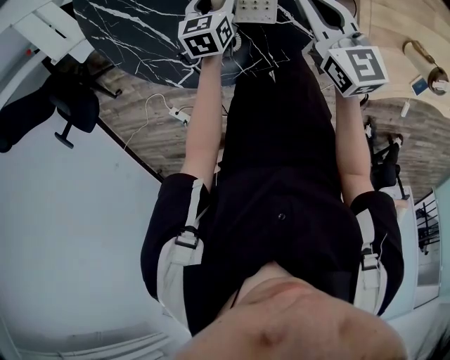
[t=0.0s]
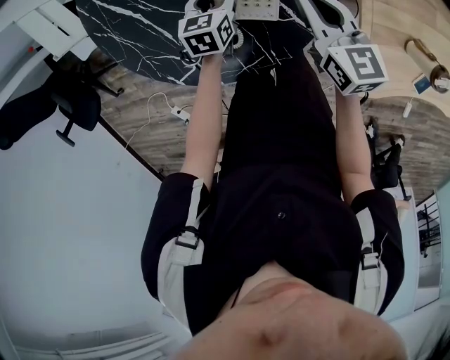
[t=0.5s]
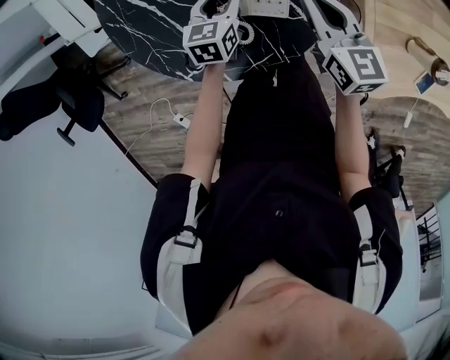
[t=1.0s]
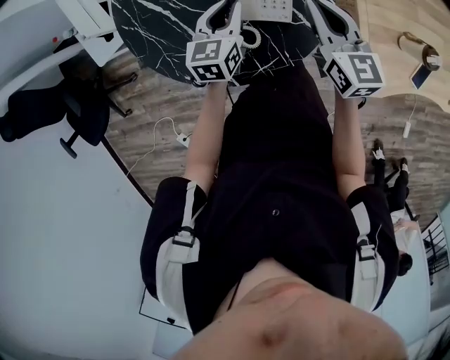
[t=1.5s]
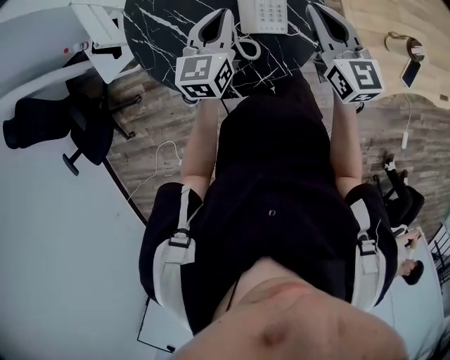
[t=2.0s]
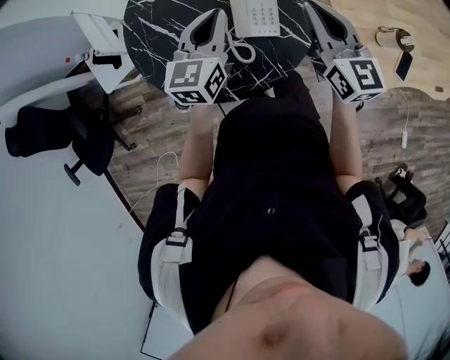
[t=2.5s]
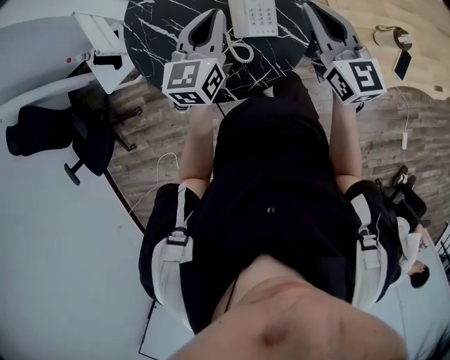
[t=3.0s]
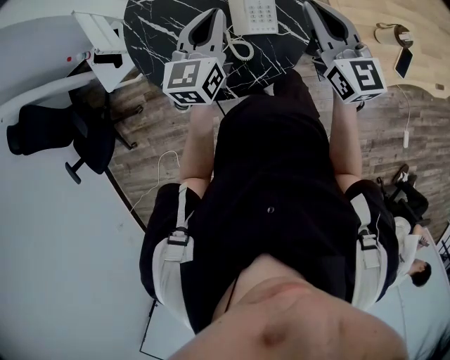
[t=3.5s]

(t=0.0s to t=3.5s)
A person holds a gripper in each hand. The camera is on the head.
t=0.0s - t=2.0s: The right gripper is displaced upward and backward by roughly 20 cm, and rotates roughly 20 degrees, while the left gripper shifts some 25 cm upward, tilts its fingers about 30 degrees upward, and closes up.
t=2.0s - t=3.5s: The left gripper moves upward, approximately 5 cm, while the right gripper ends up some 5 cm from where it was.

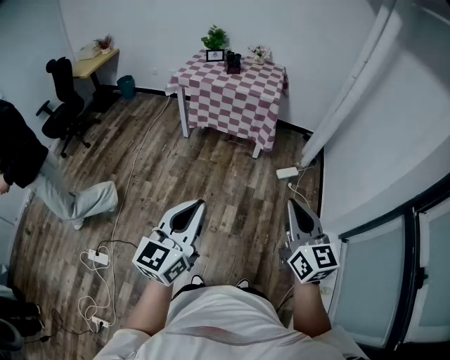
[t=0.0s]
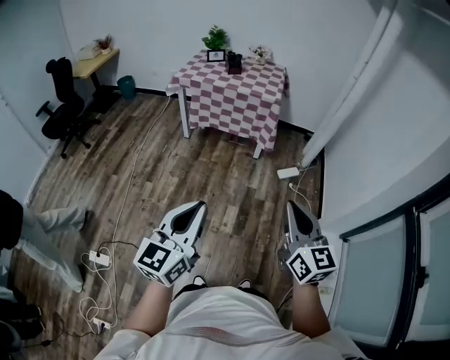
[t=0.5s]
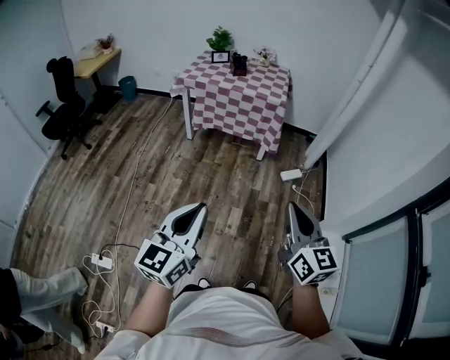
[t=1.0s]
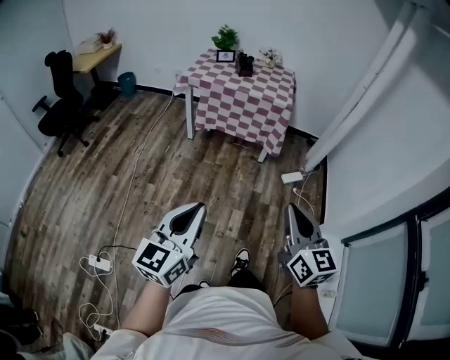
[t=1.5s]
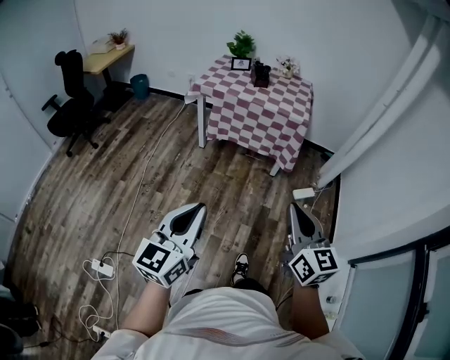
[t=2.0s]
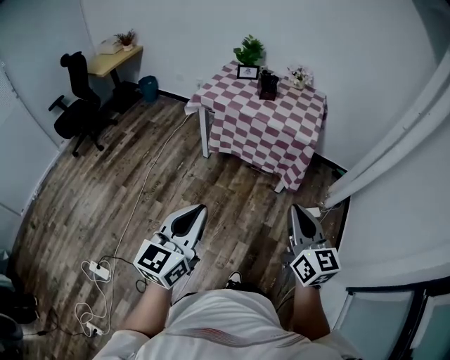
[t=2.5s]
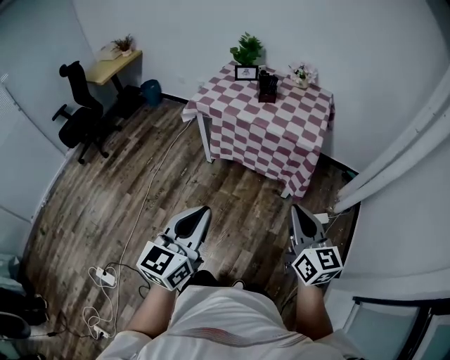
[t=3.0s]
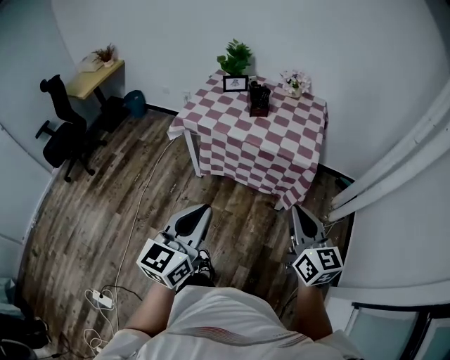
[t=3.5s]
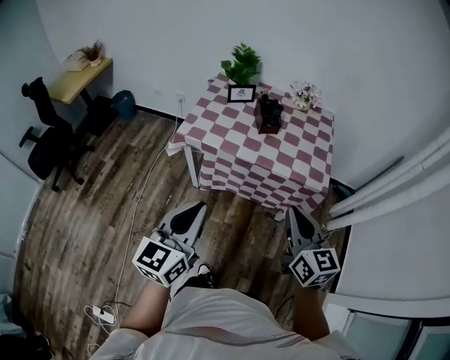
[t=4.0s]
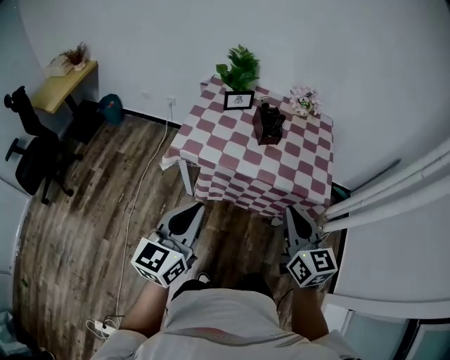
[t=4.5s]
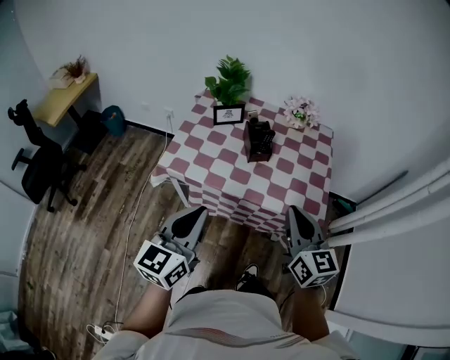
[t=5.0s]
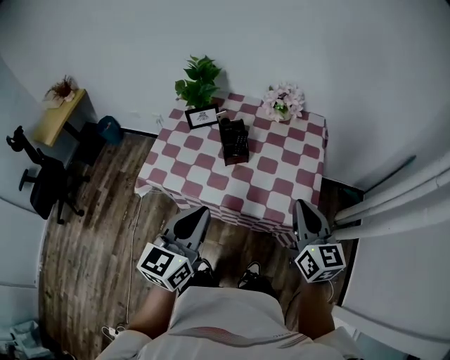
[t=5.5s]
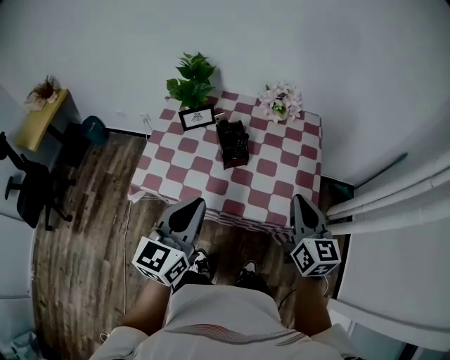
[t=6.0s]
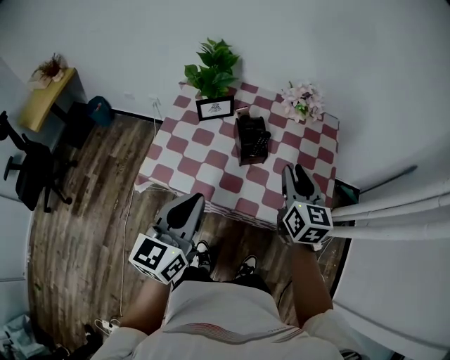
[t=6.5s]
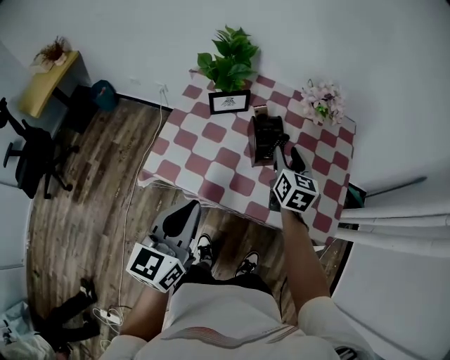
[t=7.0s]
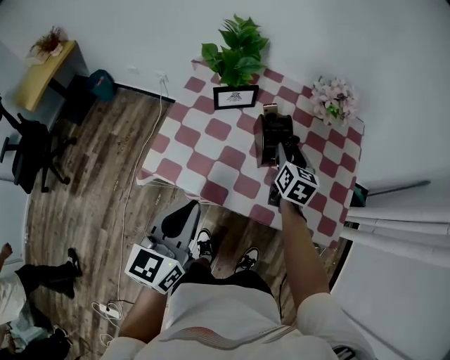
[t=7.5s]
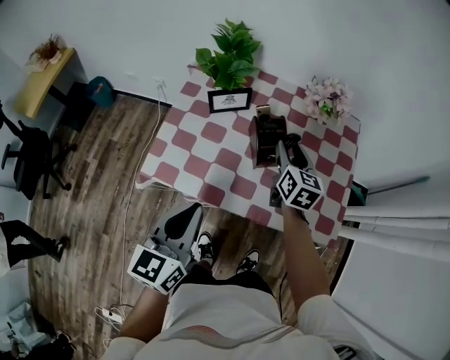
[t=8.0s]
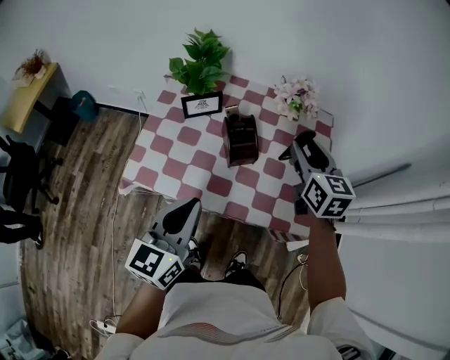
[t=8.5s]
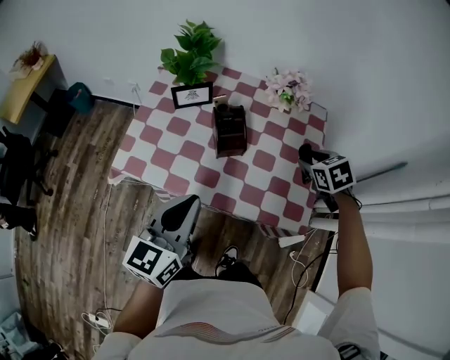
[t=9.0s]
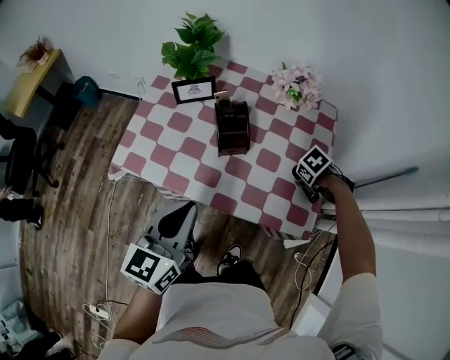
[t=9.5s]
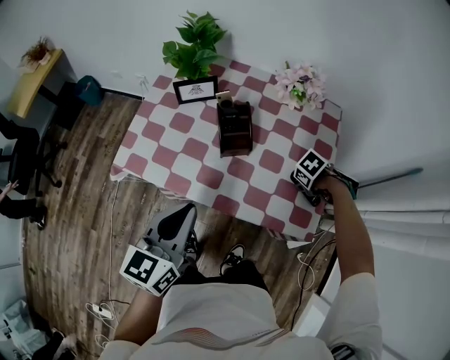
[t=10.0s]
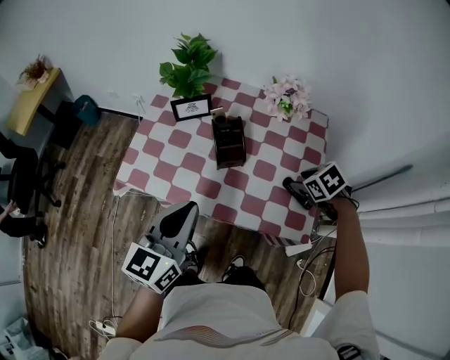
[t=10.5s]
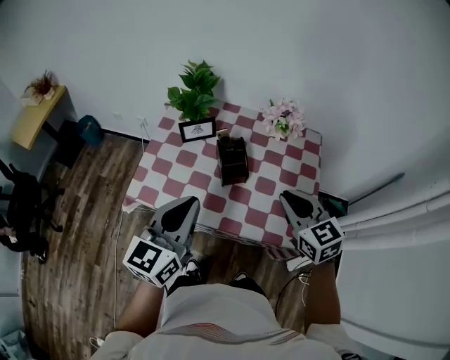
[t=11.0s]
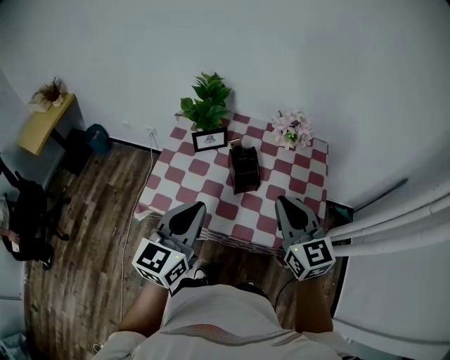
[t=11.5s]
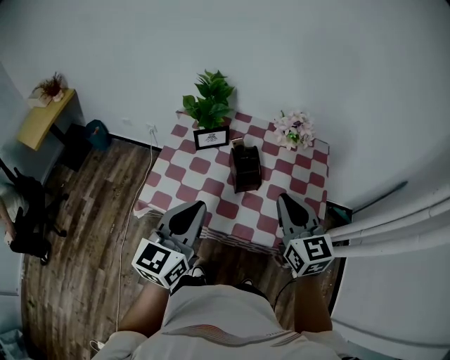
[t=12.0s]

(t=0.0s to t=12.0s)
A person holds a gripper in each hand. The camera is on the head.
t=0.0s - t=2.0s: The right gripper travels forward and to the left by some 20 cm. Meanwhile the left gripper is displaced to the left and forward by roughly 20 cm.
t=2.0s - t=4.0s: The two grippers travel together, forward, approximately 50 cm.
t=4.0s - t=6.0s: The left gripper travels forward by approximately 30 cm. The right gripper goes approximately 30 cm forward and to the right.
t=6.0s - t=8.0s: The right gripper moves forward, to the left and downward, approximately 30 cm, and opens up. Meanwhile the left gripper shifts some 10 cm to the left and downward.
t=8.0s - t=10.0s: The left gripper moves about 10 cm. Meanwhile the right gripper ends up roughly 30 cm from where it was, and tilts its fingers some 60 degrees downward.
t=10.0s - t=12.0s: The right gripper travels upward by some 30 cm, tips its fingers upward by some 70 degrees, and closes its fingers. Meanwhile the left gripper heads upward, covering about 10 cm.

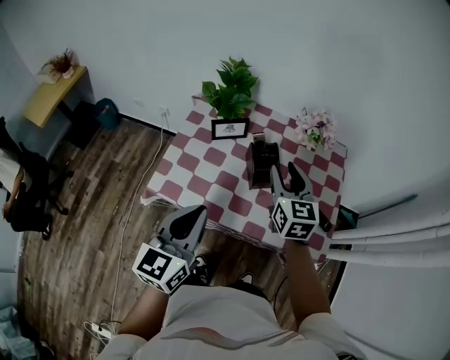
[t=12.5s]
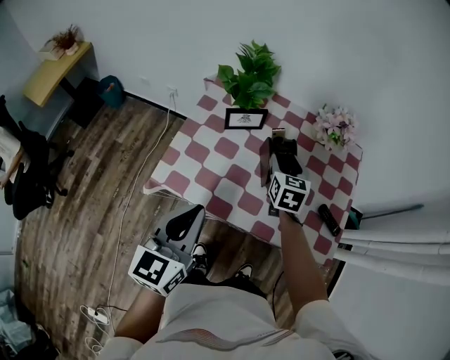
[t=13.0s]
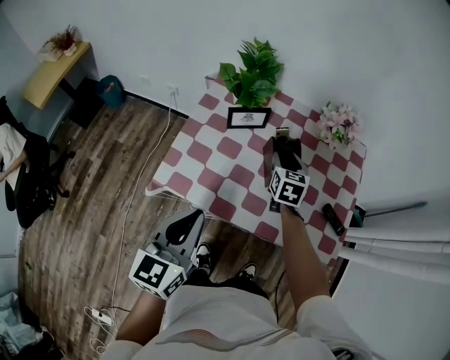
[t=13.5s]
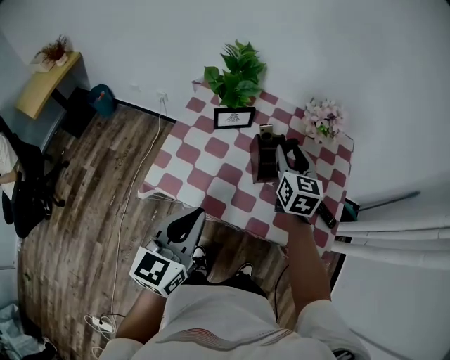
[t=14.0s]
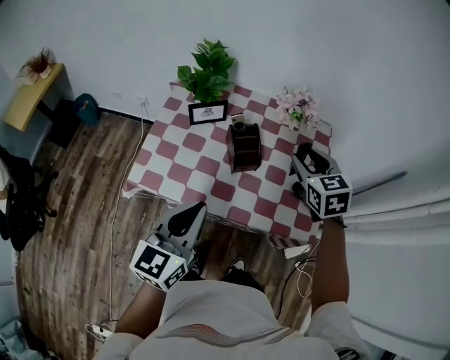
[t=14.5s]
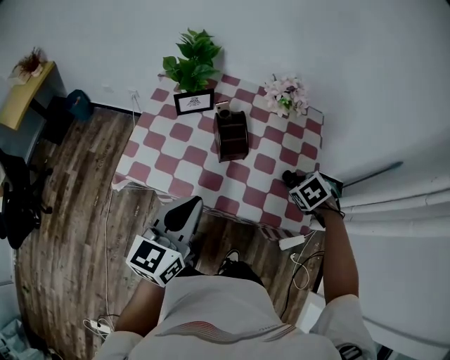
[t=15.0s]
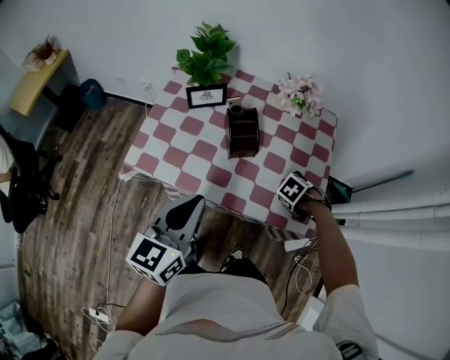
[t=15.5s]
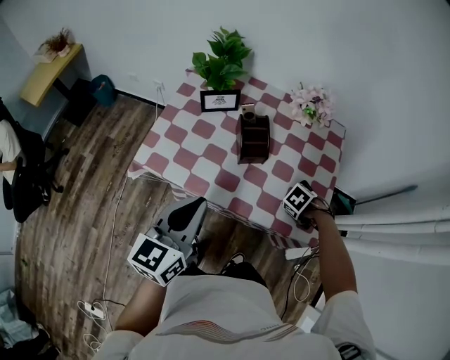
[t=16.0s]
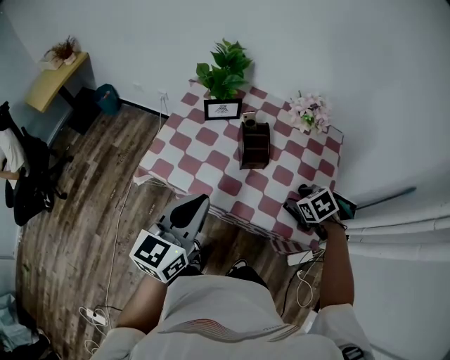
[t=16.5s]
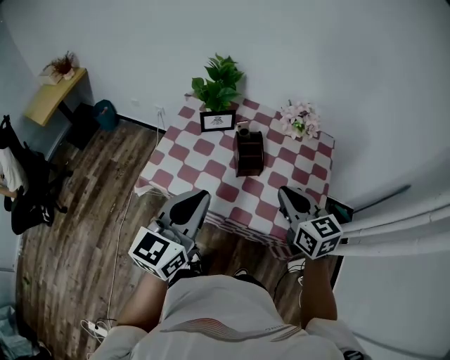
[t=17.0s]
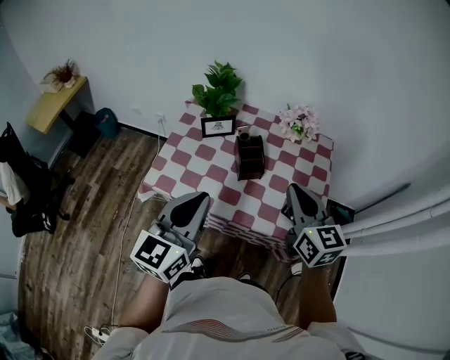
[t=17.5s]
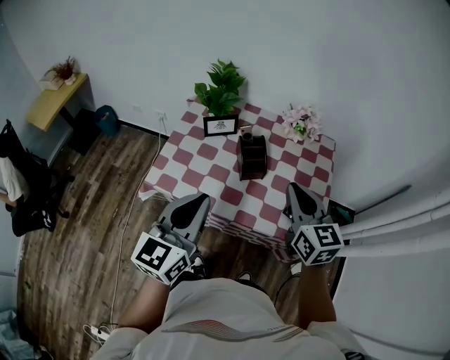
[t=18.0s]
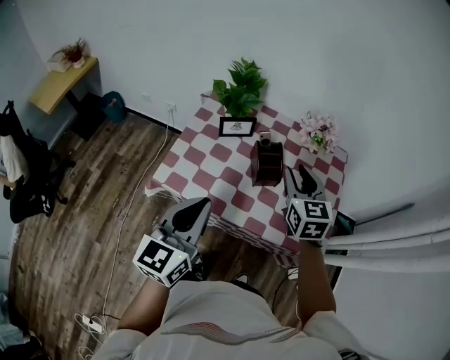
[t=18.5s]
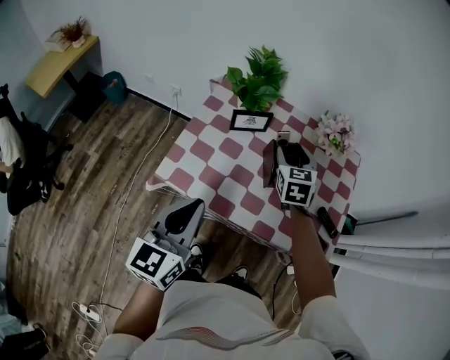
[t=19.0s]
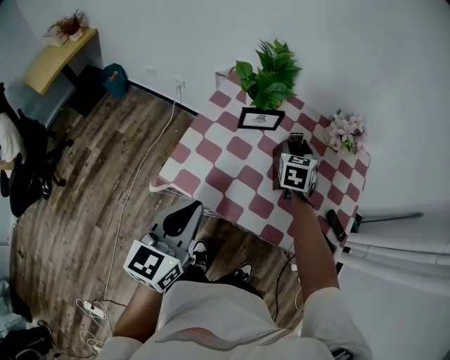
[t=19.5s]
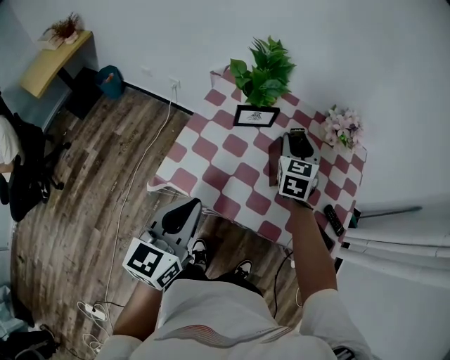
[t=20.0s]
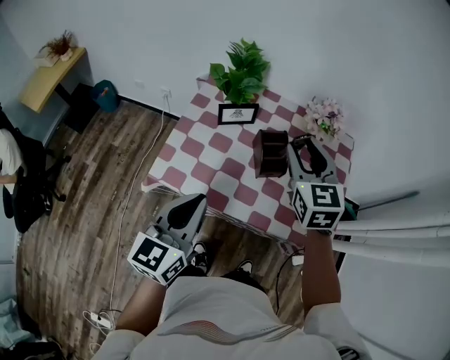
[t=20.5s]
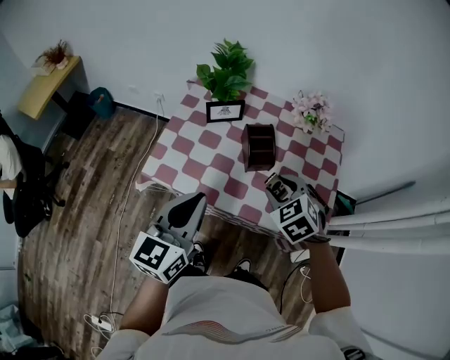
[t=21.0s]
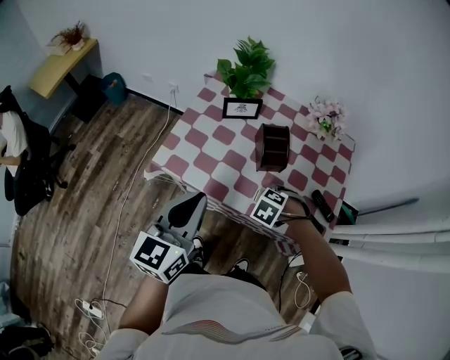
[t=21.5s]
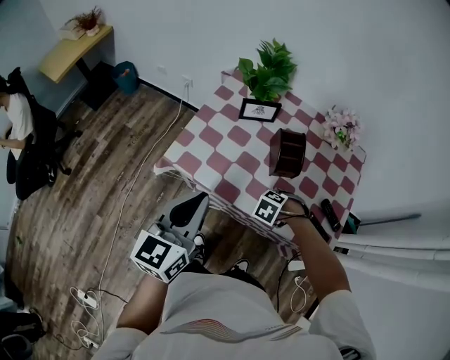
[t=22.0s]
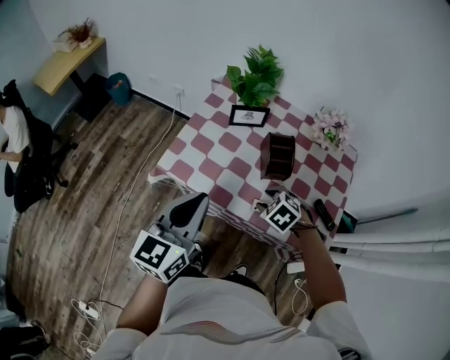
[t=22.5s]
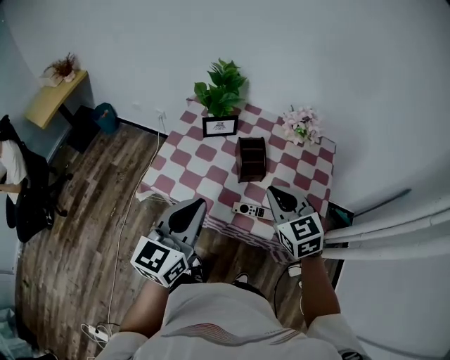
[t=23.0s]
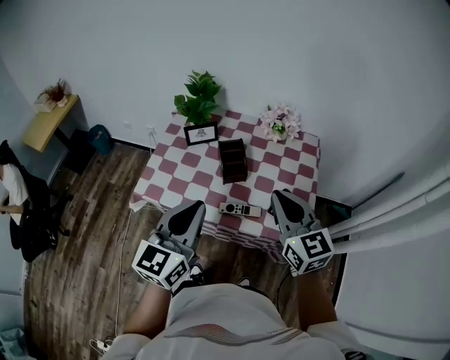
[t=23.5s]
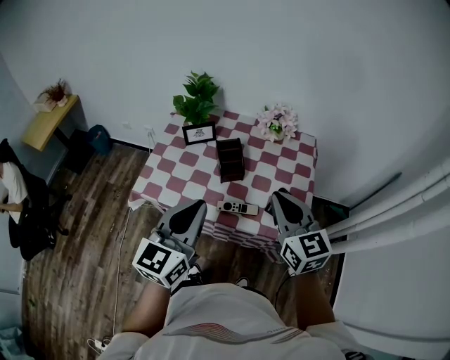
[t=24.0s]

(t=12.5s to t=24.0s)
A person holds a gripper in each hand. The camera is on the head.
t=12.5s - t=14.5s: The left gripper ends up roughly 5 cm from where it was; the right gripper shifts about 10 cm to the right, moves some 15 cm downward and comes back, and swivels approximately 20 degrees.
t=14.5s - t=16.5s: The right gripper heads downward, covering approximately 15 cm, and angles its fingers downward, by some 30 degrees.
t=16.5s - t=18.5s: The left gripper moves to the left, about 5 cm. The right gripper heads upward and to the left, covering approximately 20 cm, angles its fingers upward, by approximately 50 degrees, and closes, then reopens.
t=18.5s - t=20.0s: The right gripper goes roughly 20 cm forward, downward and to the left, while the left gripper heads to the left and downward, covering roughly 10 cm.
t=20.0s - t=22.0s: The right gripper moves roughly 30 cm, and angles its fingers downward, by approximately 60 degrees.
t=22.0s - t=24.0s: The left gripper ends up about 20 cm from where it was; the right gripper shifts approximately 35 cm upward, tilts its fingers some 80 degrees upward, and closes up.
